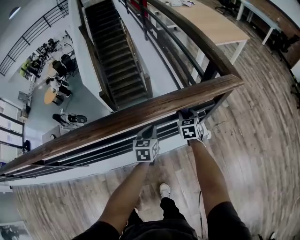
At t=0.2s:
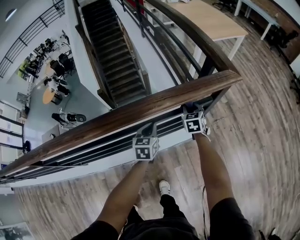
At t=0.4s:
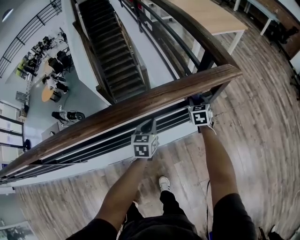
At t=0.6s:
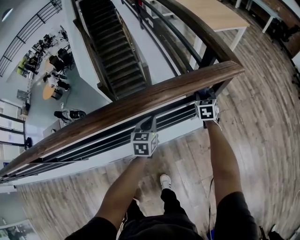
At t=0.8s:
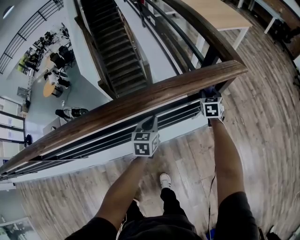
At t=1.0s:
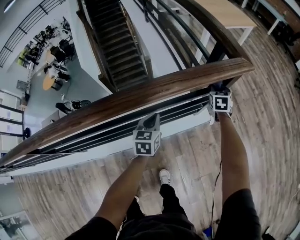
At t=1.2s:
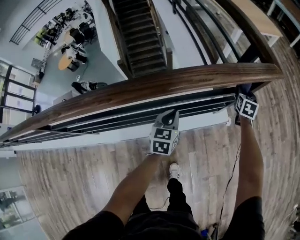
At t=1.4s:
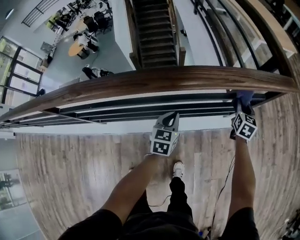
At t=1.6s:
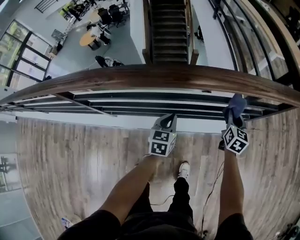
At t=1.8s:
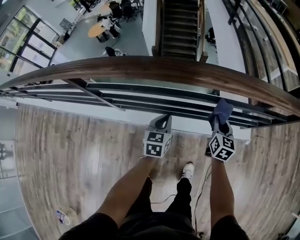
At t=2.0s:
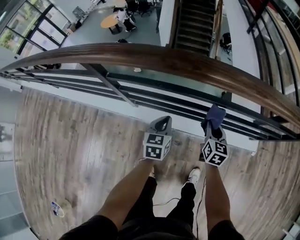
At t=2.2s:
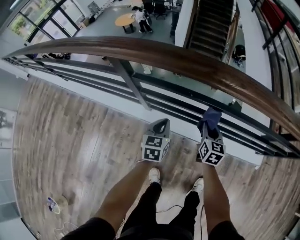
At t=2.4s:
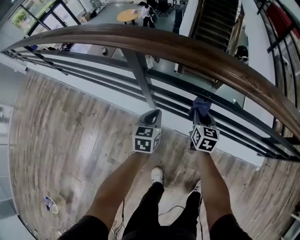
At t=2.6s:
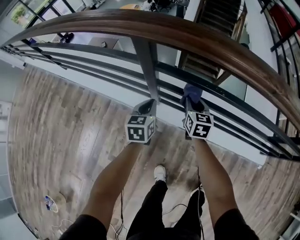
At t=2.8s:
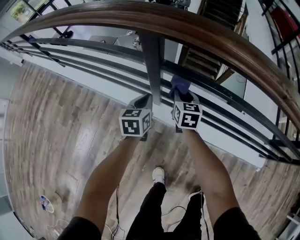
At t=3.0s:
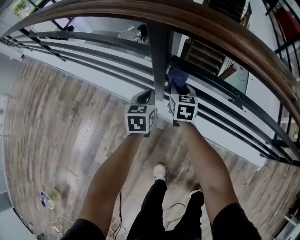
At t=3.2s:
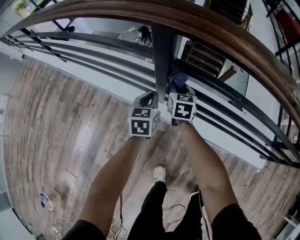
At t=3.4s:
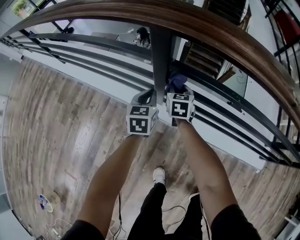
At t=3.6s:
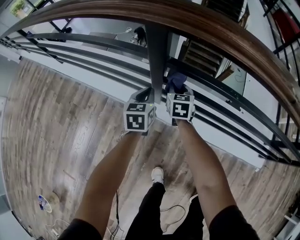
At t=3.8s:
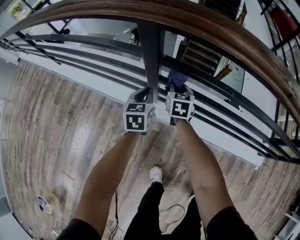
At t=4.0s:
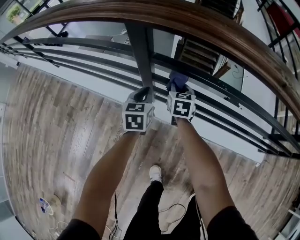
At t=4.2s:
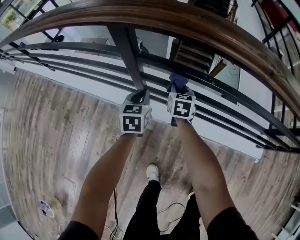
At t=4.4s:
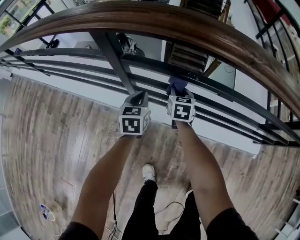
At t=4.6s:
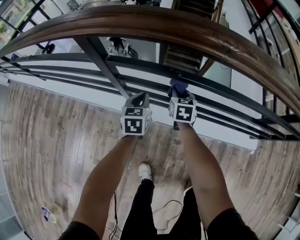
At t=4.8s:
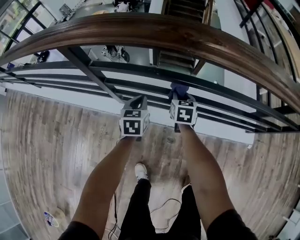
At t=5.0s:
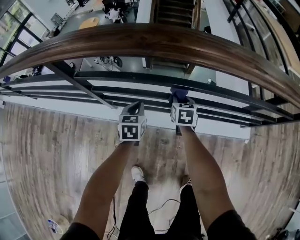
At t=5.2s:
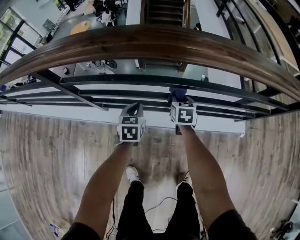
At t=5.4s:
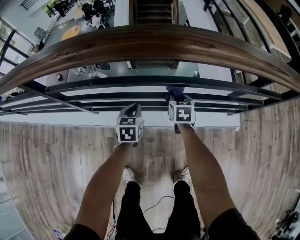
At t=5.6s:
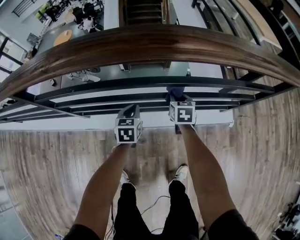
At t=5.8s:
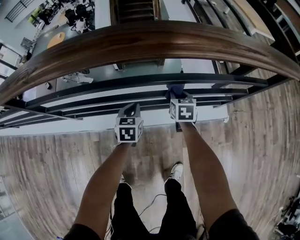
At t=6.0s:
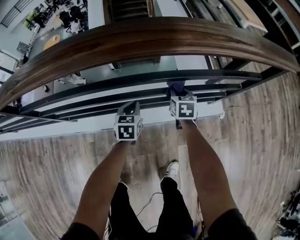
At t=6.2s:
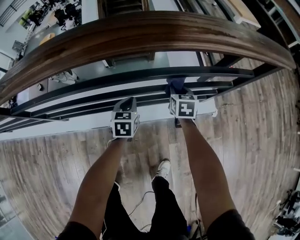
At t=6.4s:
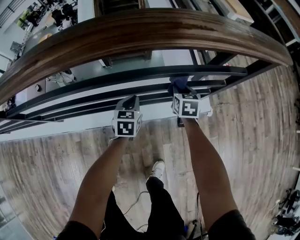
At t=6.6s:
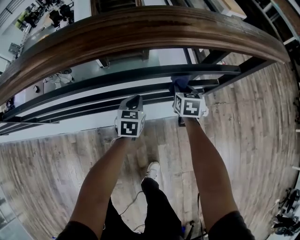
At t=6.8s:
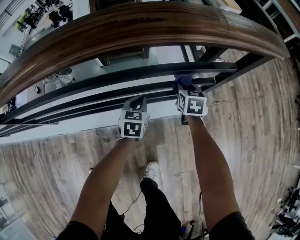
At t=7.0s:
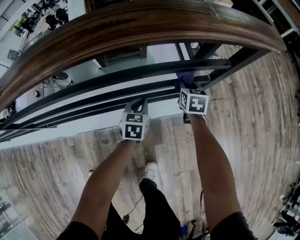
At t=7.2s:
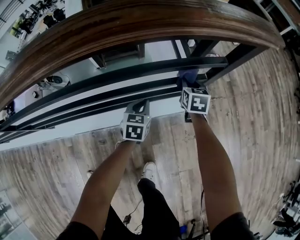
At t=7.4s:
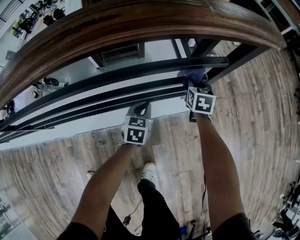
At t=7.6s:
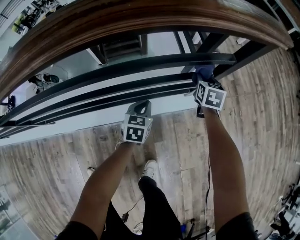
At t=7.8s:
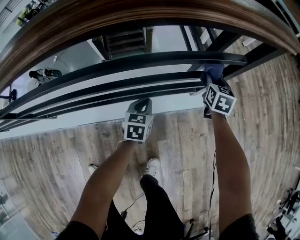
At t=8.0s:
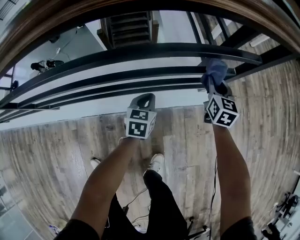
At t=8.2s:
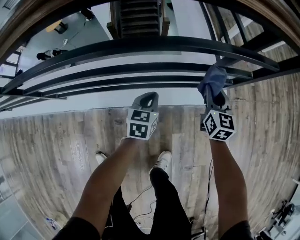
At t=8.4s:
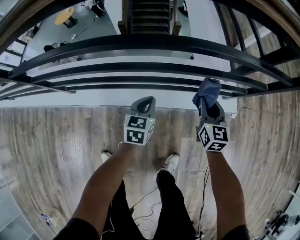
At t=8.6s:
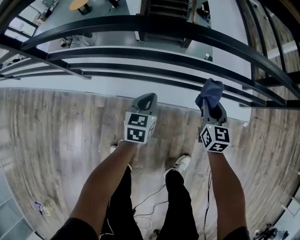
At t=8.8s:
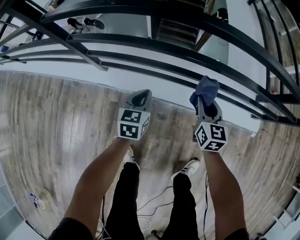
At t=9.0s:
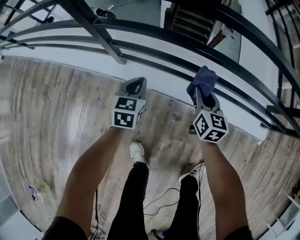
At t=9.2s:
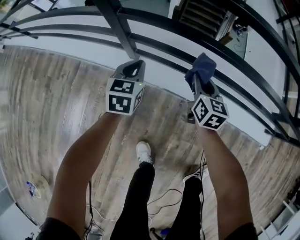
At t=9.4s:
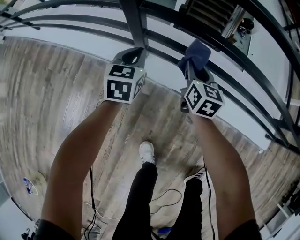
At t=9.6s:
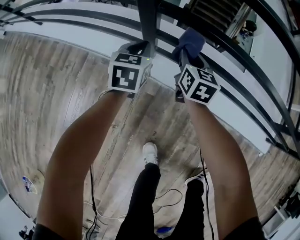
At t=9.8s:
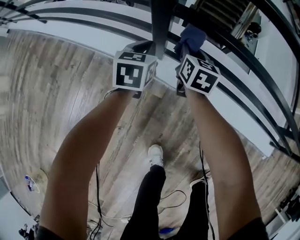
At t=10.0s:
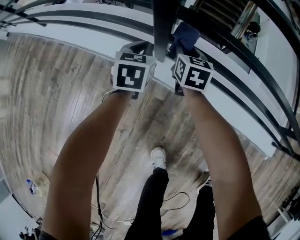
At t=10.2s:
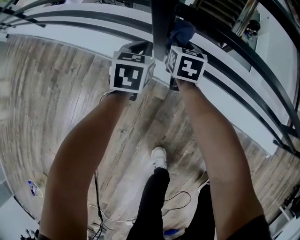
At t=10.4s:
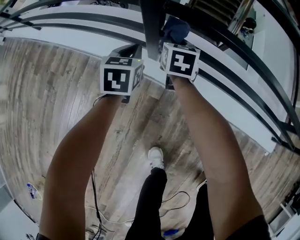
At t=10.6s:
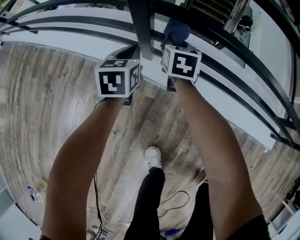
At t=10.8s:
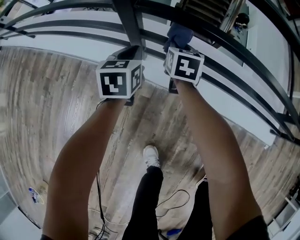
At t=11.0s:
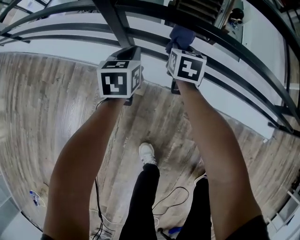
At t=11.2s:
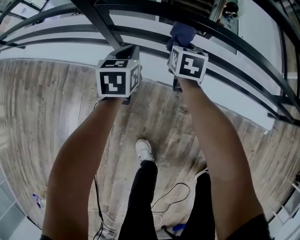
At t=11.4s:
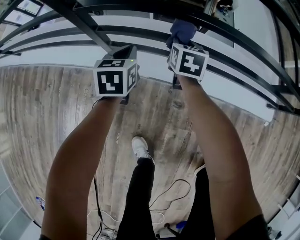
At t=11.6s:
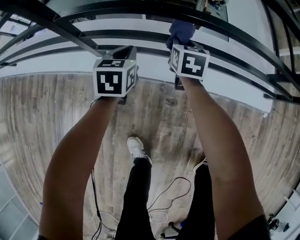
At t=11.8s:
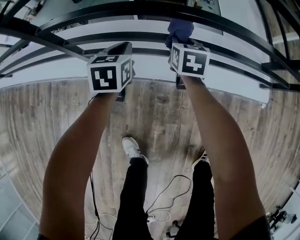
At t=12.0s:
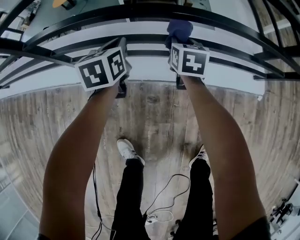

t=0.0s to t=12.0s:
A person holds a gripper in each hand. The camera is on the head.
t=0.0s to t=1.6s: The right gripper shifts about 20 cm backward and to the left. The left gripper goes approximately 30 cm to the left and backward.
t=1.6s to t=3.0s: Both grippers are carried about 70 cm. The left gripper swivels some 30 degrees. The right gripper swivels approximately 40 degrees.
t=3.0s to t=4.4s: The grippers both shift to the right by some 15 cm.
t=4.4s to t=6.0s: The two grippers travel together, to the right, roughly 60 cm. The left gripper changes its angle by about 20 degrees.
t=6.0s to t=7.6s: Both grippers travel together to the right, approximately 30 cm.
t=7.6s to t=9.0s: The two grippers travel together, about 80 cm. The left gripper changes its angle by approximately 30 degrees. The right gripper swivels approximately 40 degrees.
t=9.0s to t=10.4s: Both grippers travel together to the left and forward, approximately 35 cm.
t=10.4s to t=12.0s: The pair of grippers is taken to the right, some 50 cm.

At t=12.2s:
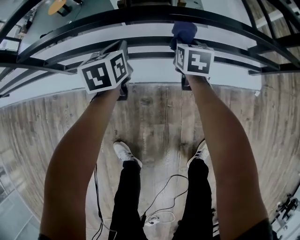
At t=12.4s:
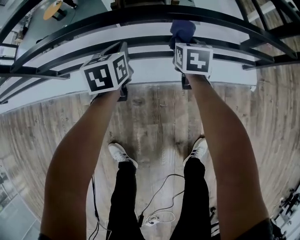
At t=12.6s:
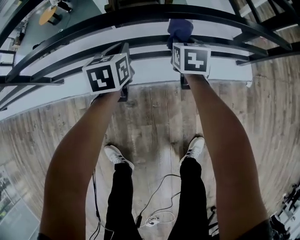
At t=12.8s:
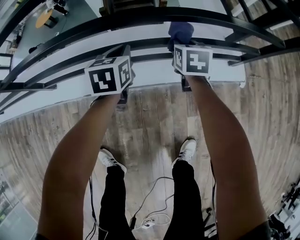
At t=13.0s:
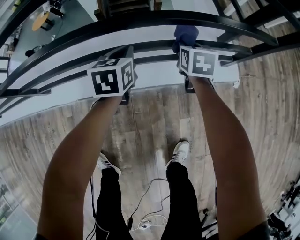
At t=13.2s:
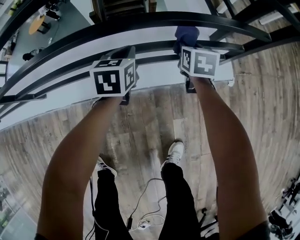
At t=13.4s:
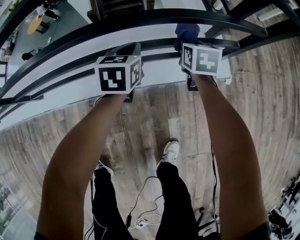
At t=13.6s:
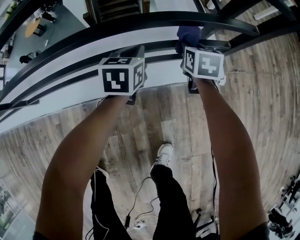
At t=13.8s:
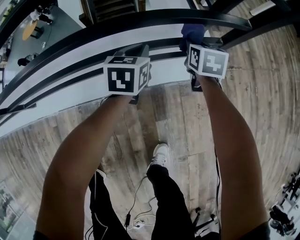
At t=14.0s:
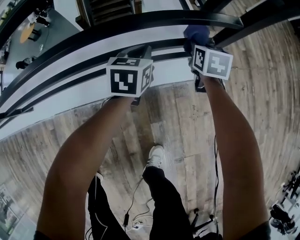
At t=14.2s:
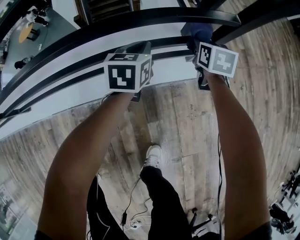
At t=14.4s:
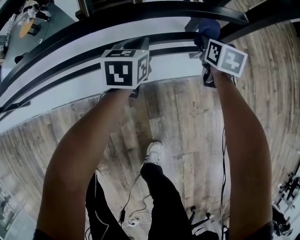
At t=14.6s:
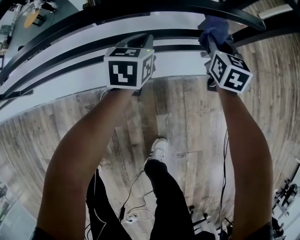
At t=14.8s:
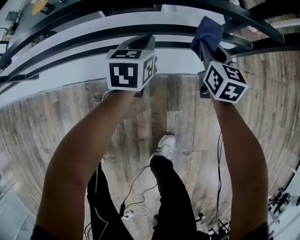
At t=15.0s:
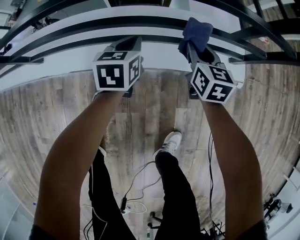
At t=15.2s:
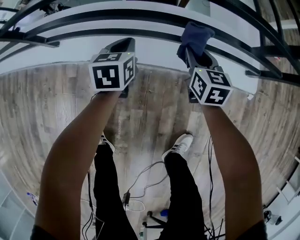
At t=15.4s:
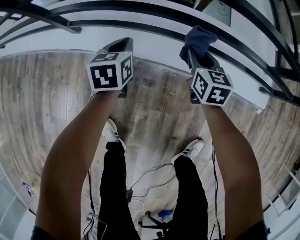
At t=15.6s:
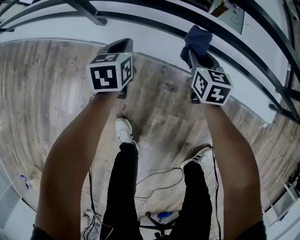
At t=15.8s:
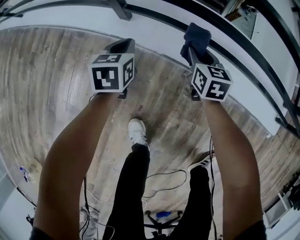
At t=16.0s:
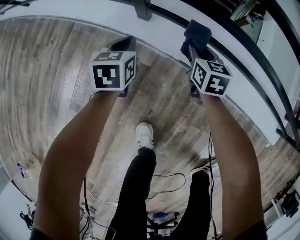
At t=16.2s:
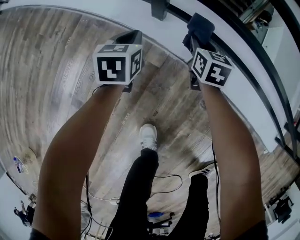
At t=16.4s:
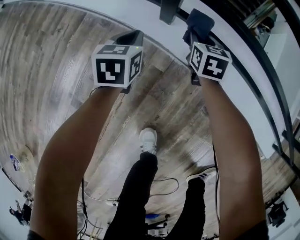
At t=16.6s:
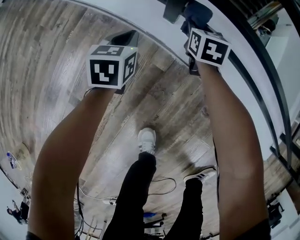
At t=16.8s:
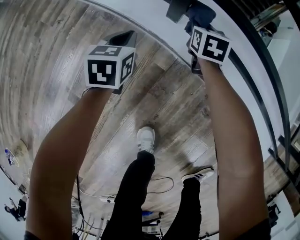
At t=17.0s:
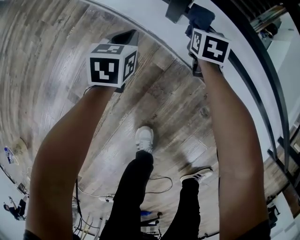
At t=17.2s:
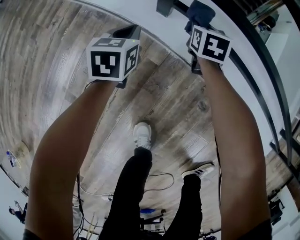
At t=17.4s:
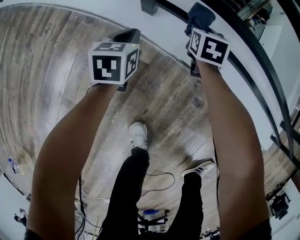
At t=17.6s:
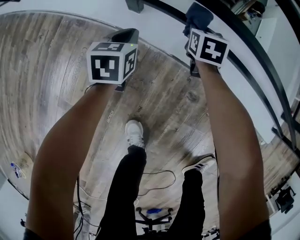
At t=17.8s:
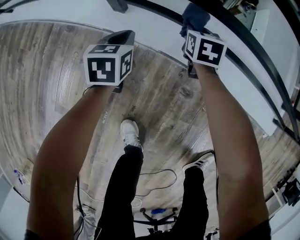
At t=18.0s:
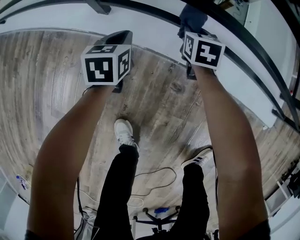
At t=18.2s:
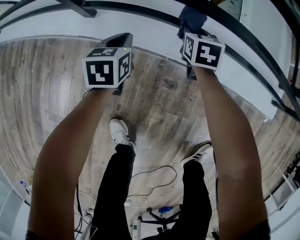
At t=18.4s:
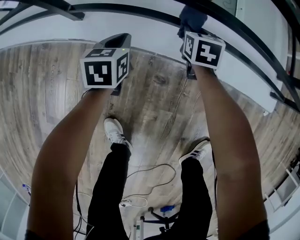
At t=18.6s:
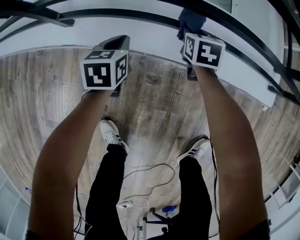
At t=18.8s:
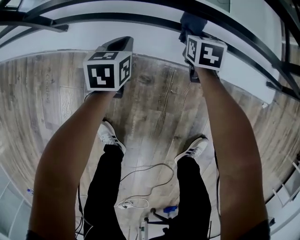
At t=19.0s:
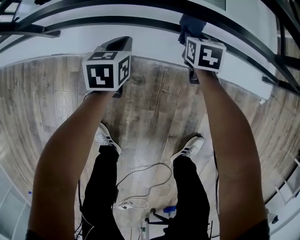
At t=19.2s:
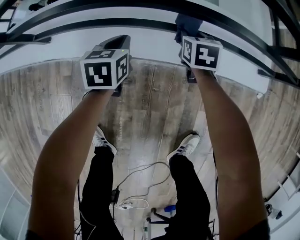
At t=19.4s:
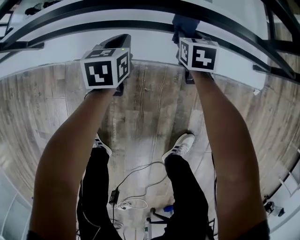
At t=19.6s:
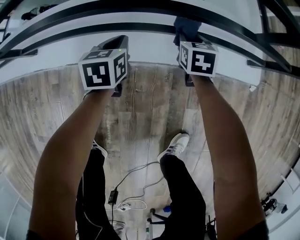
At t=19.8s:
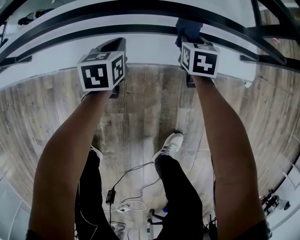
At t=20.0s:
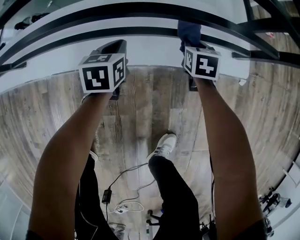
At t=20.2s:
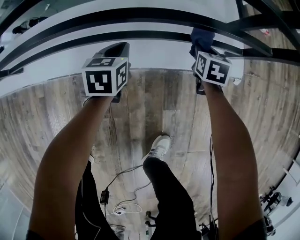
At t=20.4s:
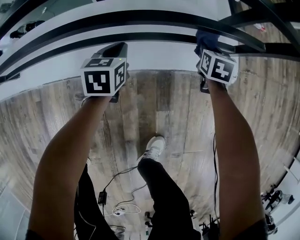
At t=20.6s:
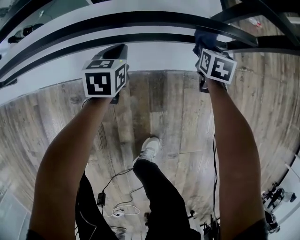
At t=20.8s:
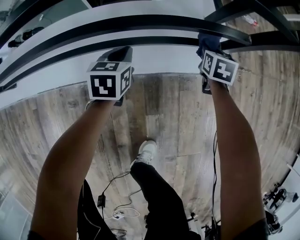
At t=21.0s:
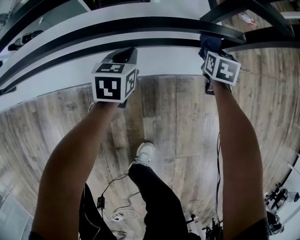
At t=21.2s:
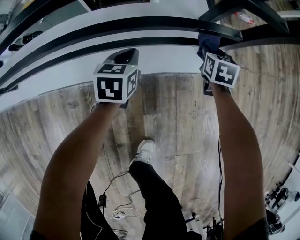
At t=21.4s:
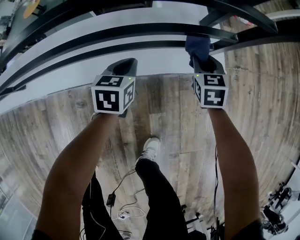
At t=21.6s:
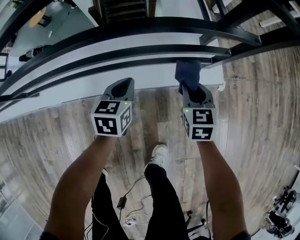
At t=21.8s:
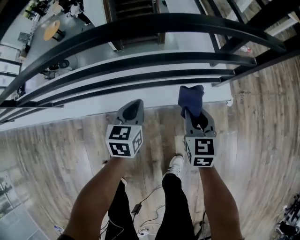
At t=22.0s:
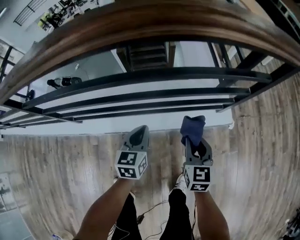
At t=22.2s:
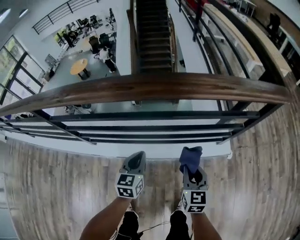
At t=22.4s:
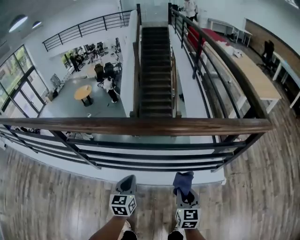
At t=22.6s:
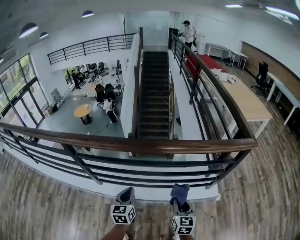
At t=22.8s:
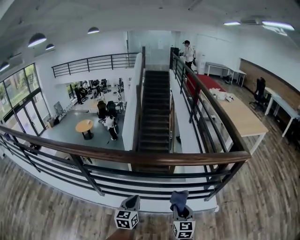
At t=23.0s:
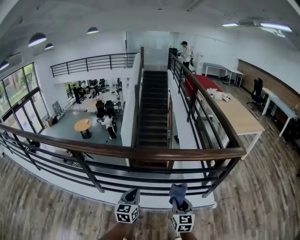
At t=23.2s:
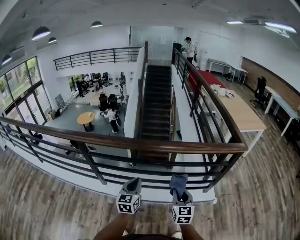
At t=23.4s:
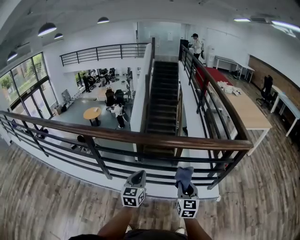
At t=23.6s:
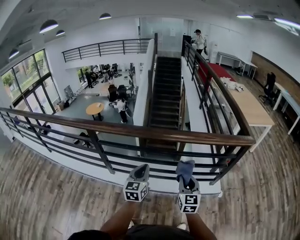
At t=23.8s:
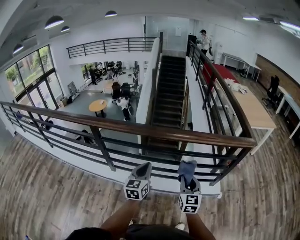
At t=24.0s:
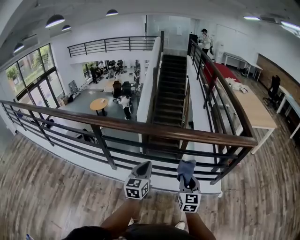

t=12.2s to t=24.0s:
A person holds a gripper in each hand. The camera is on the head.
t=12.2s to t=13.6s: The pair of grippers is taken to the right, some 40 cm. The left gripper turns by approximately 20 degrees.
t=13.6s to t=15.2s: The left gripper moves roughly 35 cm, and turns by approximately 20 degrees; the right gripper ends up roughly 35 cm from where it was, and changes its angle by roughly 20 degrees.
t=15.2s to t=16.6s: The two grippers travel together, to the left, some 60 cm. The right gripper rotates roughly 20 degrees. Meanwhile the left gripper turns by approximately 20 degrees.
t=16.6s to t=18.2s: The two grippers go some 35 cm to the right.
t=18.2s to t=19.6s: Both grippers move to the right, about 40 cm.
t=19.6s to t=21.0s: The grippers both shift to the right by roughly 35 cm.
t=21.0s to t=22.6s: The pair of grippers is taken to the left and backward, about 50 cm. The two grippers go about 70 cm upward. The left gripper rotates approximately 30 degrees. The right gripper tips its fingers upward by some 30 degrees.
t=22.6s to t=24.0s: The left gripper travels upward and backward by approximately 20 cm, while the right gripper moves upward, backward and to the left, roughly 15 cm.
